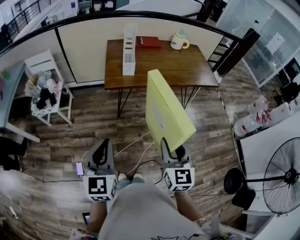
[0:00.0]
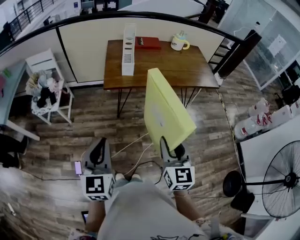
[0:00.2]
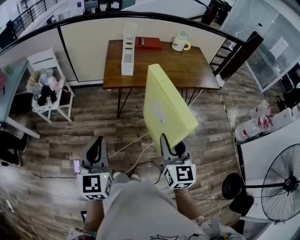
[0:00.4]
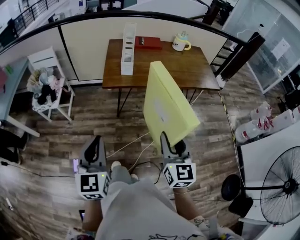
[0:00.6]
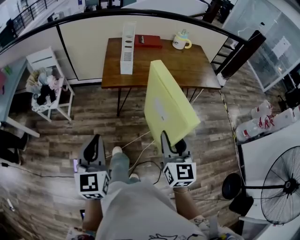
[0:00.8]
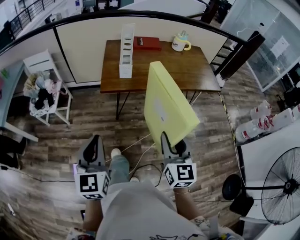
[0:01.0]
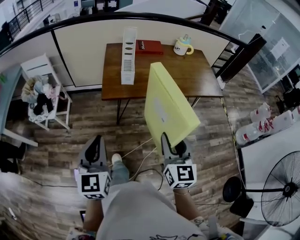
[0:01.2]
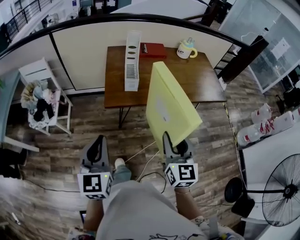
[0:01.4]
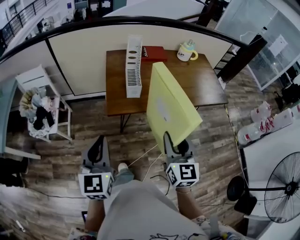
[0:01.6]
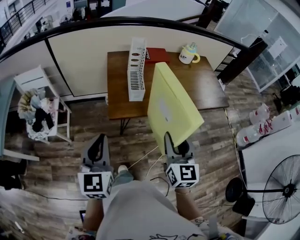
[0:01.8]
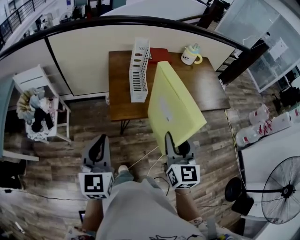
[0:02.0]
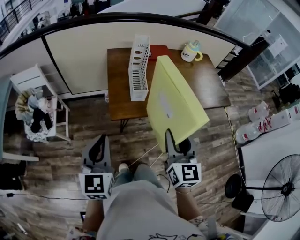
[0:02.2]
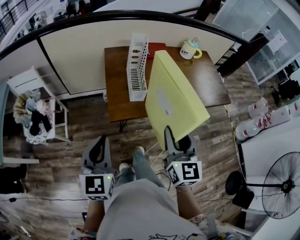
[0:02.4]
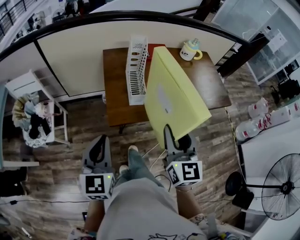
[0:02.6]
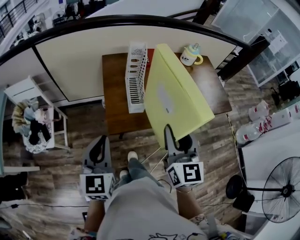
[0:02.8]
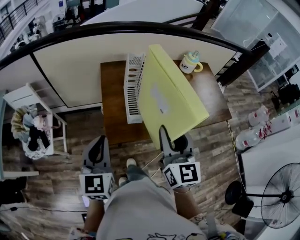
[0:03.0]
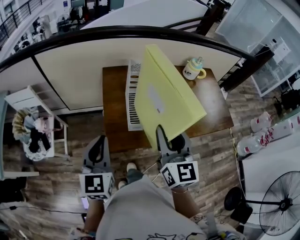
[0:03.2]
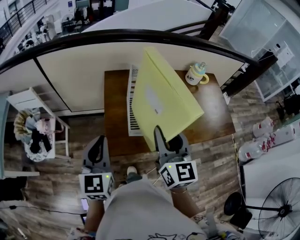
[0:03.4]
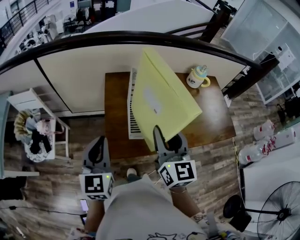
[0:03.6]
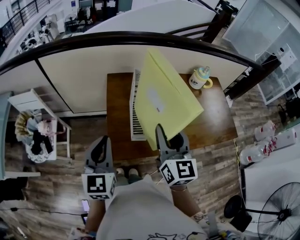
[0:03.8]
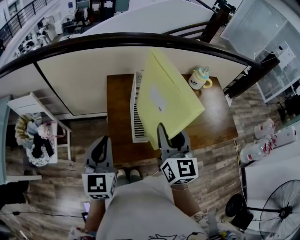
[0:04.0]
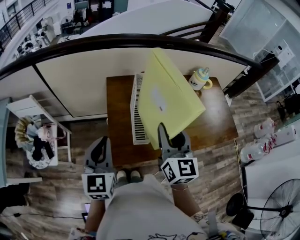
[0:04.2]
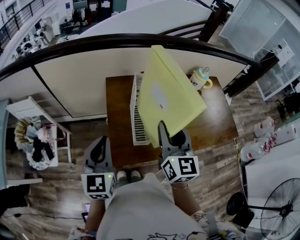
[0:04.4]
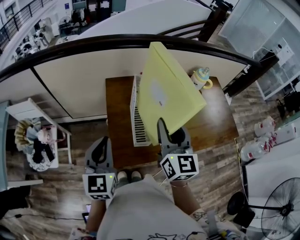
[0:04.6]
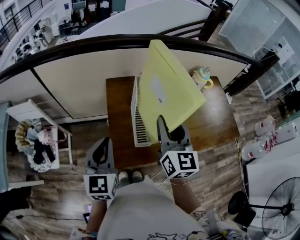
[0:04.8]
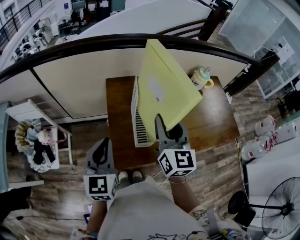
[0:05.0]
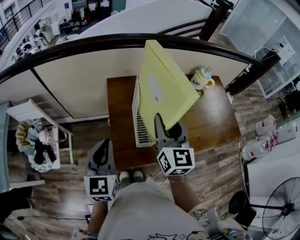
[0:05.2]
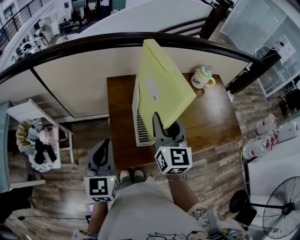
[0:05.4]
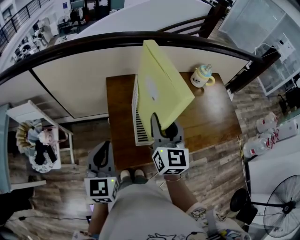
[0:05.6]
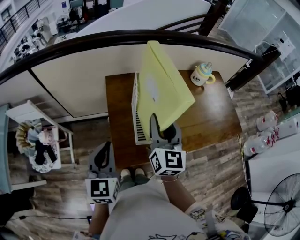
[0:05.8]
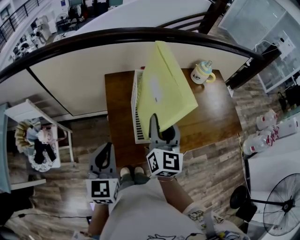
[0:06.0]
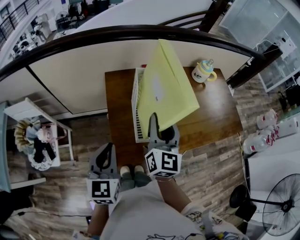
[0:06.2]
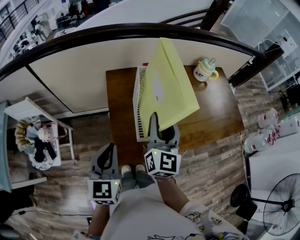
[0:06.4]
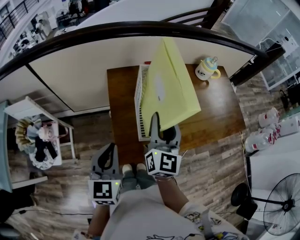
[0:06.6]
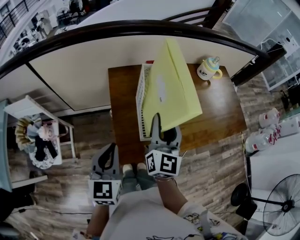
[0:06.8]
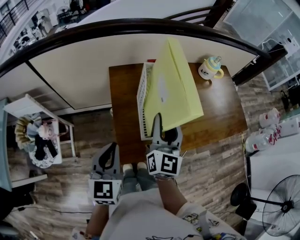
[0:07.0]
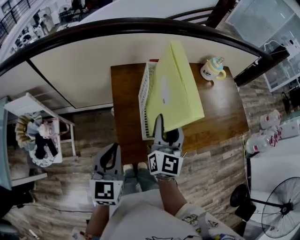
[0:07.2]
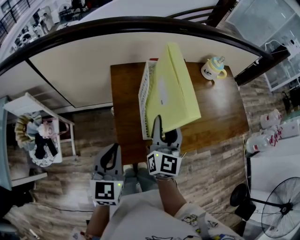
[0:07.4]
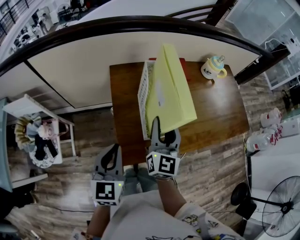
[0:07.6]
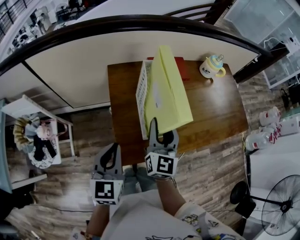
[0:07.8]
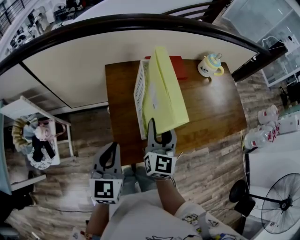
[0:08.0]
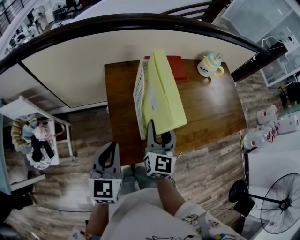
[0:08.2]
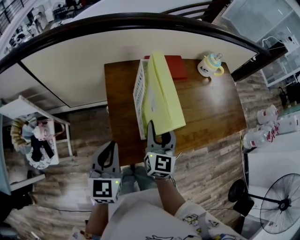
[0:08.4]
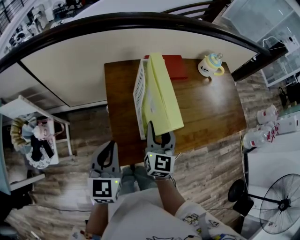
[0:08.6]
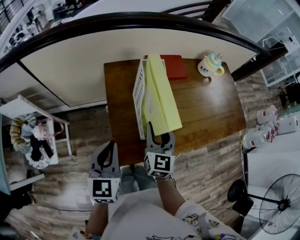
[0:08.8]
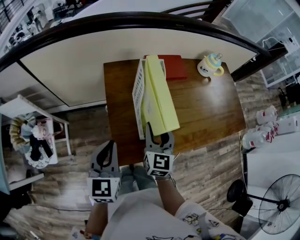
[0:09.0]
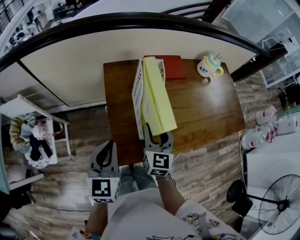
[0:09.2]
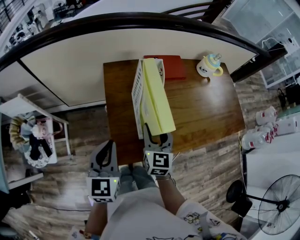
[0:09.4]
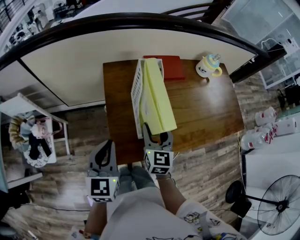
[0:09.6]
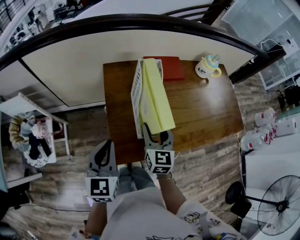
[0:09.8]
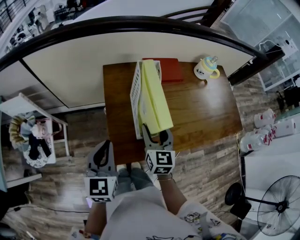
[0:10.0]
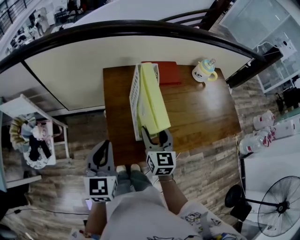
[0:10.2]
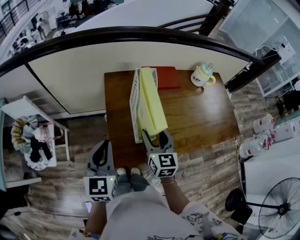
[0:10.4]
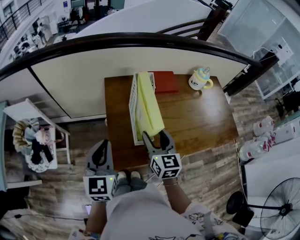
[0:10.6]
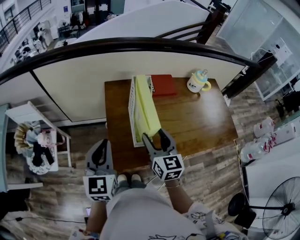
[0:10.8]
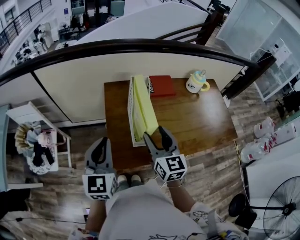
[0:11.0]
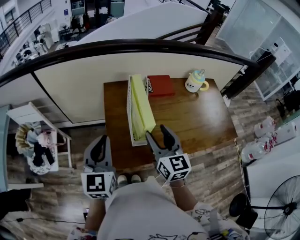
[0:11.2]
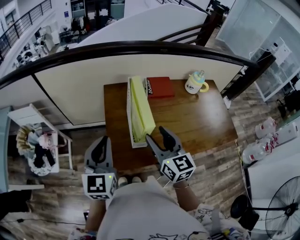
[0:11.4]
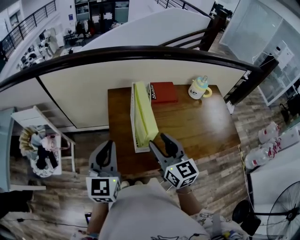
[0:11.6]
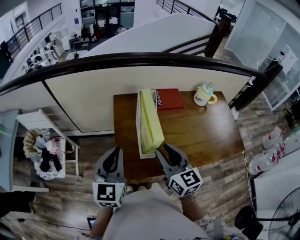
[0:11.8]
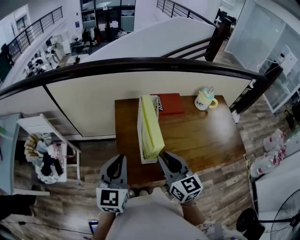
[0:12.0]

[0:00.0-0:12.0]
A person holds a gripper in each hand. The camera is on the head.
0.0 to 1.6 s: Both grippers travel together forward, roughly 20 cm.
1.6 to 3.0 s: Both grippers move forward, roughly 20 cm.
3.0 to 4.4 s: Both grippers move forward, about 15 cm.
4.4 to 6.0 s: The right gripper changes place by approximately 5 cm.
6.0 to 7.6 s: The right gripper heads downward, covering some 5 cm.
7.6 to 9.0 s: The right gripper is displaced downward by roughly 5 cm.
9.0 to 10.4 s: There are only small adjustments of the grippers.
10.4 to 12.0 s: The right gripper travels upward and backward by some 10 cm, and closes. Meanwhile the left gripper heads upward, covering approximately 5 cm.

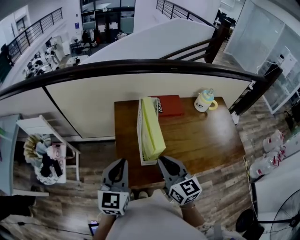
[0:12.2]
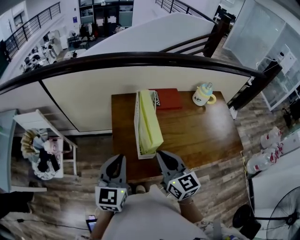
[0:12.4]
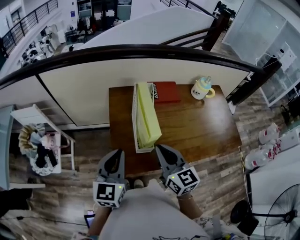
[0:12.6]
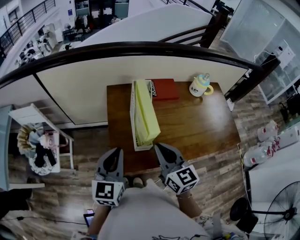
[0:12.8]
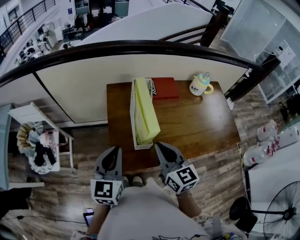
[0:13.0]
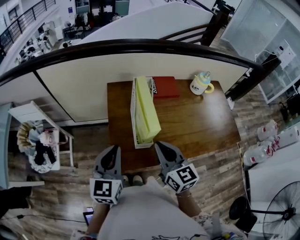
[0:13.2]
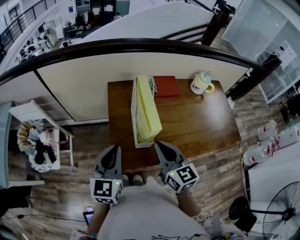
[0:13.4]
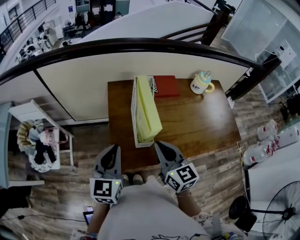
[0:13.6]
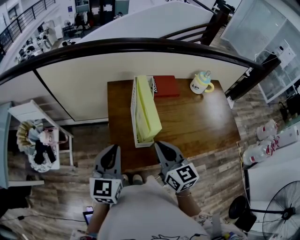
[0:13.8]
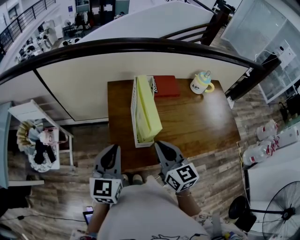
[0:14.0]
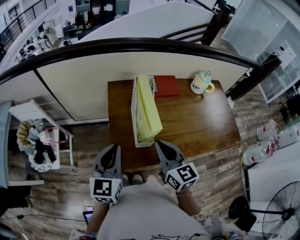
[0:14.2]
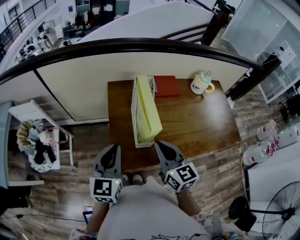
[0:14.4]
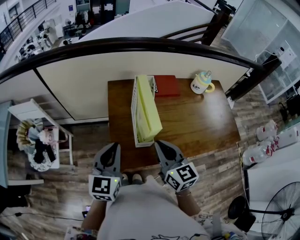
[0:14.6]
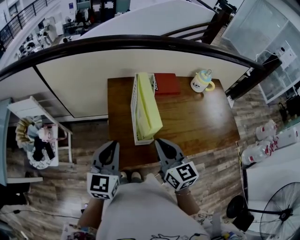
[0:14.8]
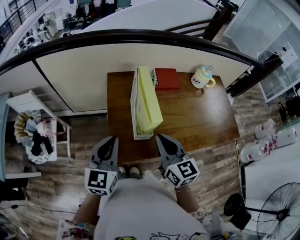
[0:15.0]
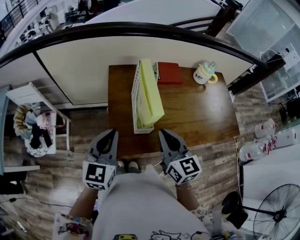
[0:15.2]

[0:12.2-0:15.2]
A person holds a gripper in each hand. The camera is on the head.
12.2 to 13.8 s: There are only small adjustments of the grippers.
13.8 to 15.2 s: Both grippers stay put.

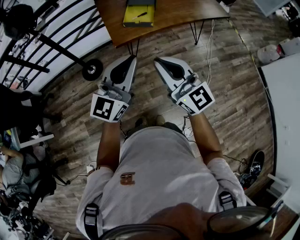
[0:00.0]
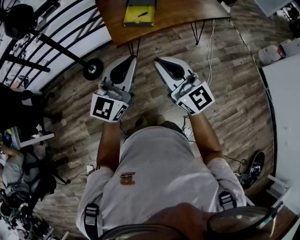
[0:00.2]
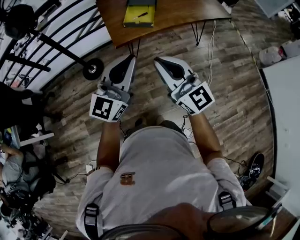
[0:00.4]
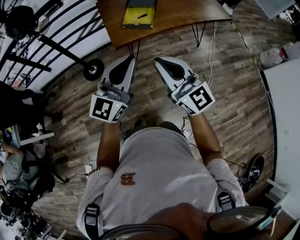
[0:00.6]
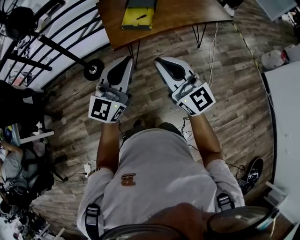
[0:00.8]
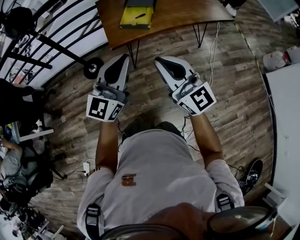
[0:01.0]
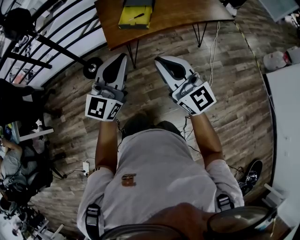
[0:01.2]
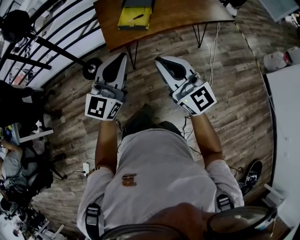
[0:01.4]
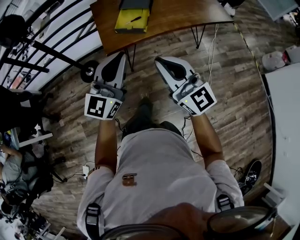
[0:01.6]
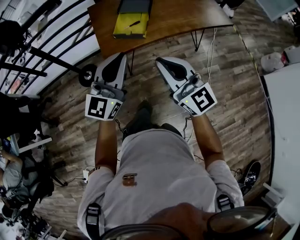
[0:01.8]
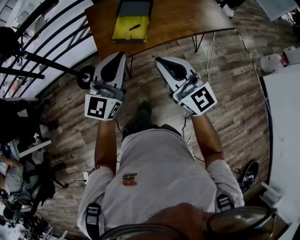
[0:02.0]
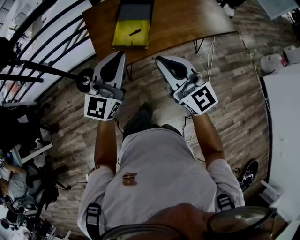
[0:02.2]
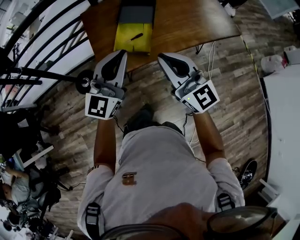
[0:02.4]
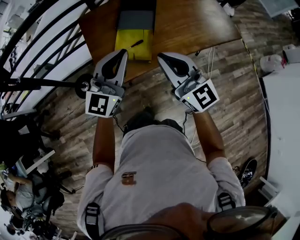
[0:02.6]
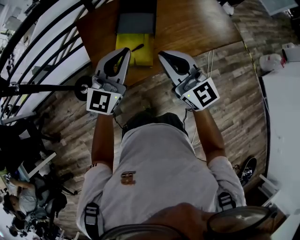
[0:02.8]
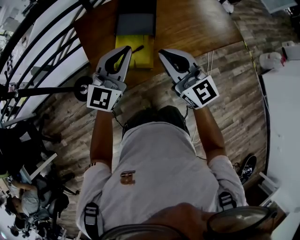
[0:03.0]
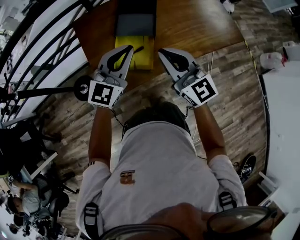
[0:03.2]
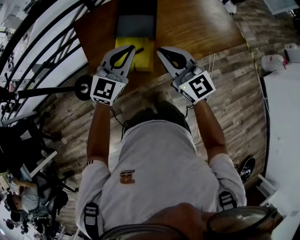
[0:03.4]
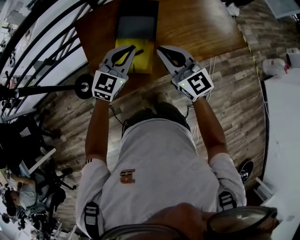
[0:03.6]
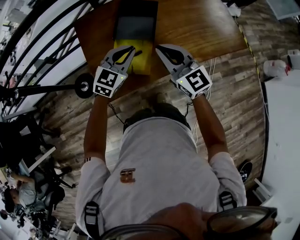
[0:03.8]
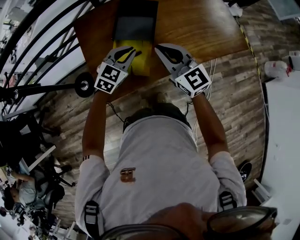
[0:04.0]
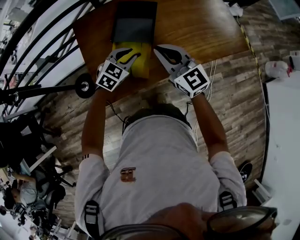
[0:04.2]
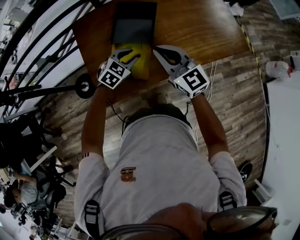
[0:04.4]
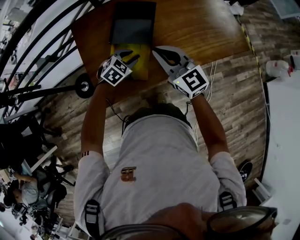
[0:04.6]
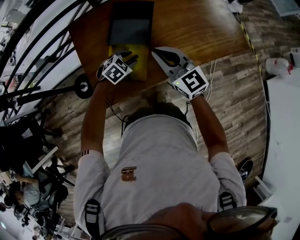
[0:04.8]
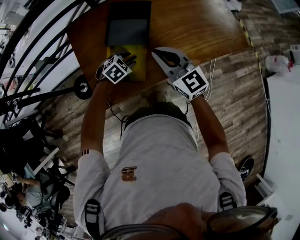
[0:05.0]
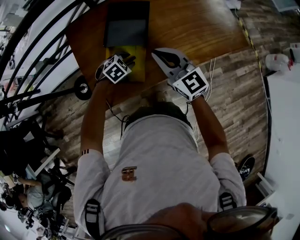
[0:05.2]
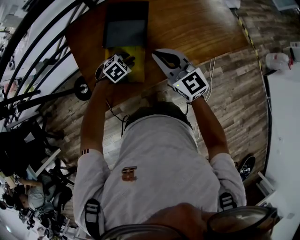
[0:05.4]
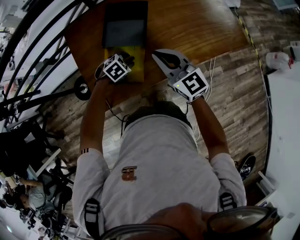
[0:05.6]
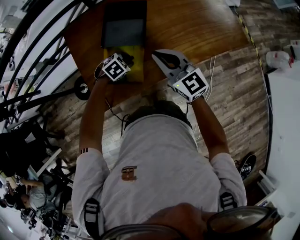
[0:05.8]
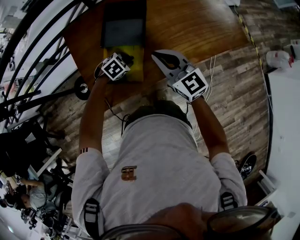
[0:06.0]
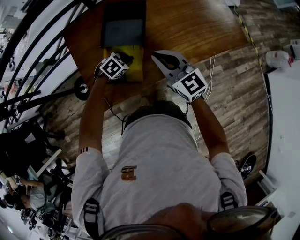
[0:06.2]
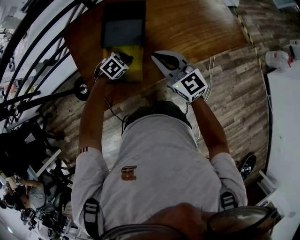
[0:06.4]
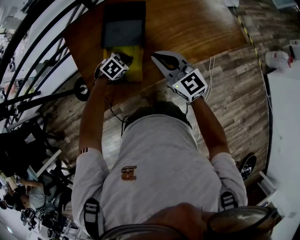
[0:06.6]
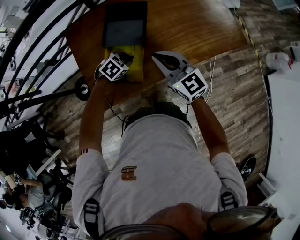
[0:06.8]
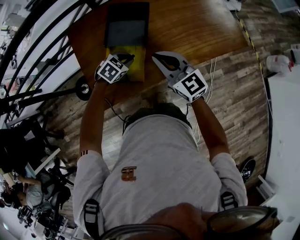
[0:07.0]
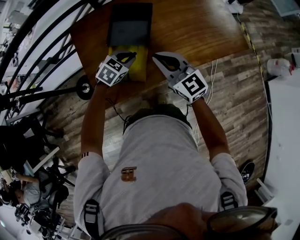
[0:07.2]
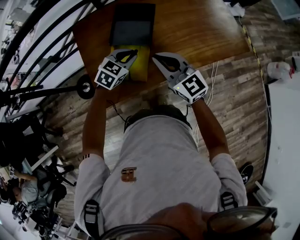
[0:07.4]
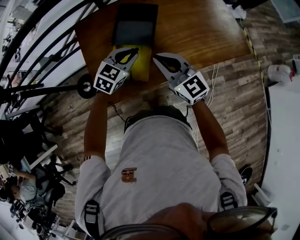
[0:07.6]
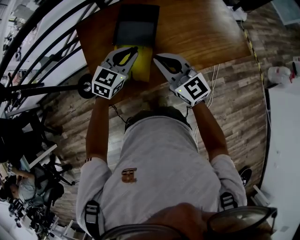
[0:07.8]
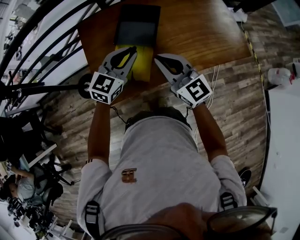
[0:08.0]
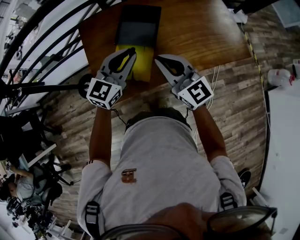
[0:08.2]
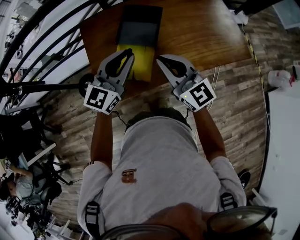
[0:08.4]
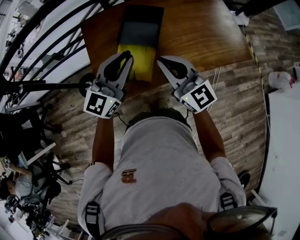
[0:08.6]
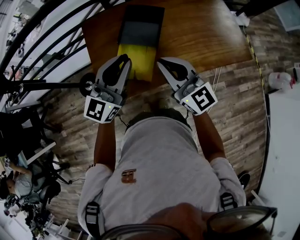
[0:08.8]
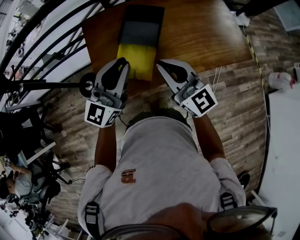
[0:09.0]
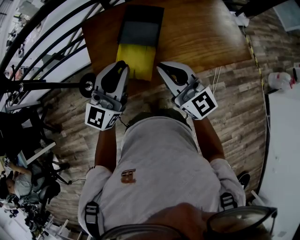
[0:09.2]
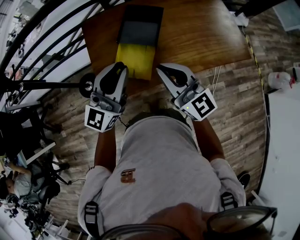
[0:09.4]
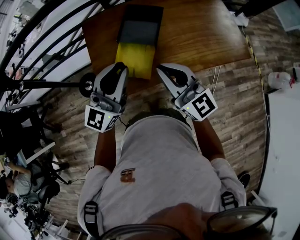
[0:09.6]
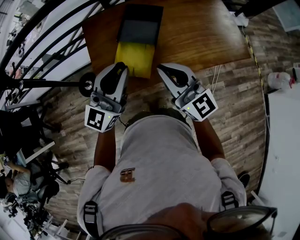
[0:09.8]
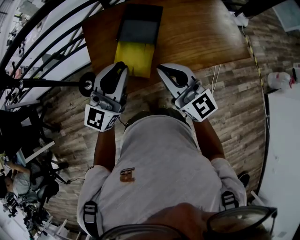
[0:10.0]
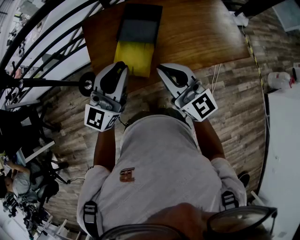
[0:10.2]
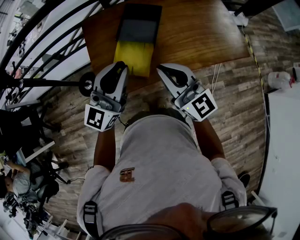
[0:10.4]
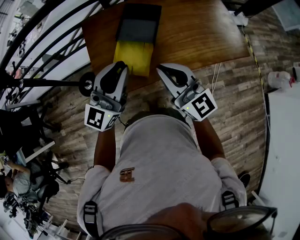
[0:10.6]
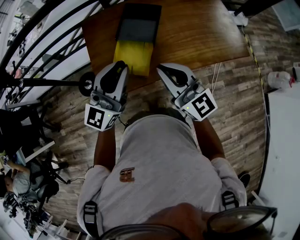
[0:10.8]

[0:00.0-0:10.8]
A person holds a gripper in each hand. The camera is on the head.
0.0 to 1.6 s: The left gripper heads forward and to the right, covering about 15 cm; the right gripper goes roughly 15 cm to the right and forward.
1.6 to 3.0 s: Both grippers are carried forward, roughly 40 cm.
3.0 to 4.6 s: The left gripper goes some 25 cm downward and forward, points its fingers roughly 50 degrees further downward, and opens up. Meanwhile the right gripper travels forward, downward and to the right by roughly 15 cm.
4.6 to 6.2 s: The left gripper shifts about 5 cm downward.
6.2 to 7.8 s: The right gripper changes place by approximately 5 cm. The left gripper travels upward by roughly 20 cm, and points its fingers about 40 degrees further upward.
7.8 to 9.2 s: The left gripper is displaced upward and backward by some 15 cm, and tips its fingers upward by some 40 degrees, while the right gripper moves upward and backward, some 10 cm.
9.2 to 10.8 s: The grippers make only small movements.
